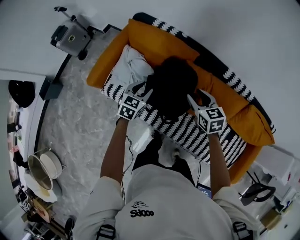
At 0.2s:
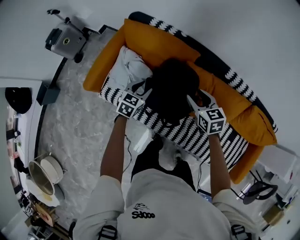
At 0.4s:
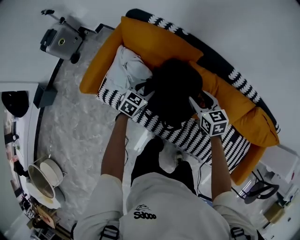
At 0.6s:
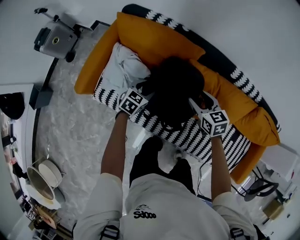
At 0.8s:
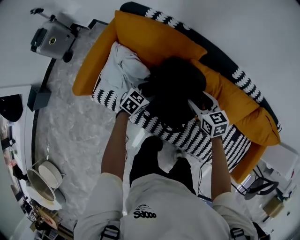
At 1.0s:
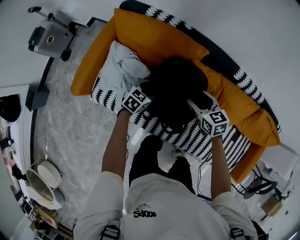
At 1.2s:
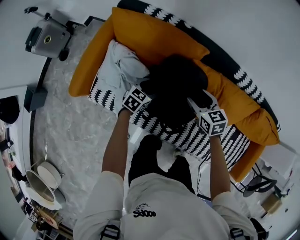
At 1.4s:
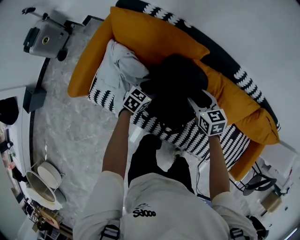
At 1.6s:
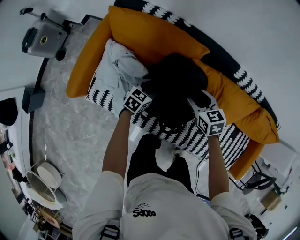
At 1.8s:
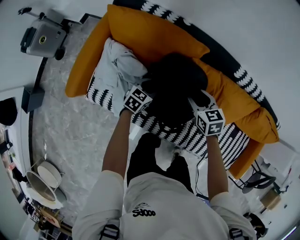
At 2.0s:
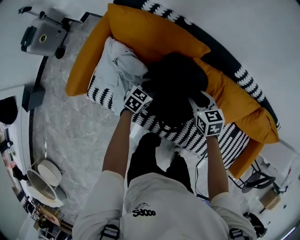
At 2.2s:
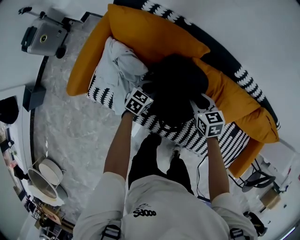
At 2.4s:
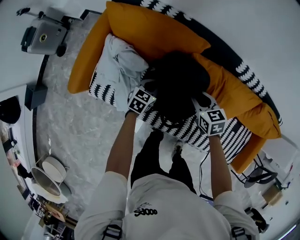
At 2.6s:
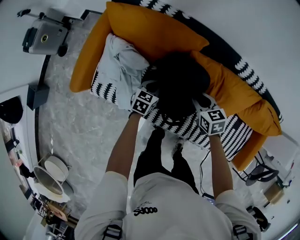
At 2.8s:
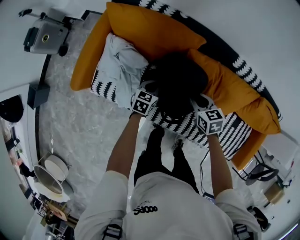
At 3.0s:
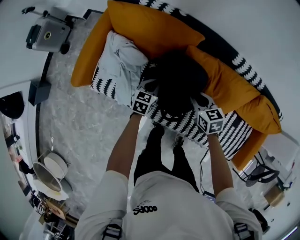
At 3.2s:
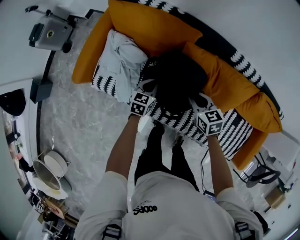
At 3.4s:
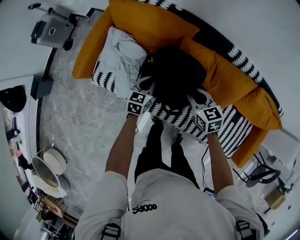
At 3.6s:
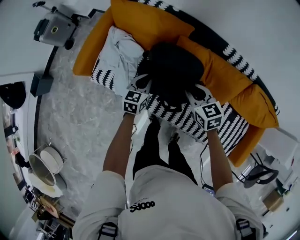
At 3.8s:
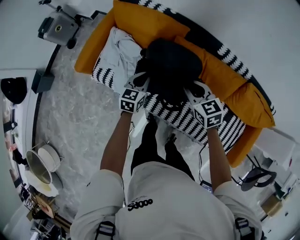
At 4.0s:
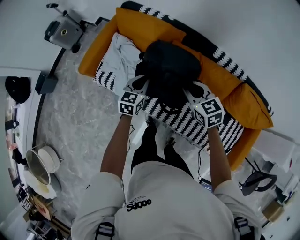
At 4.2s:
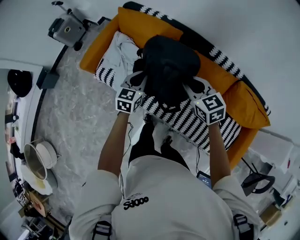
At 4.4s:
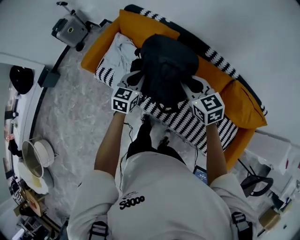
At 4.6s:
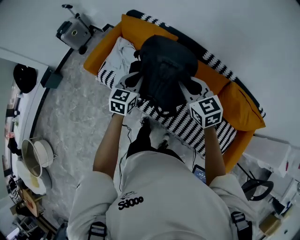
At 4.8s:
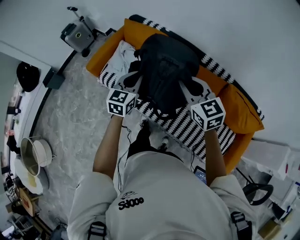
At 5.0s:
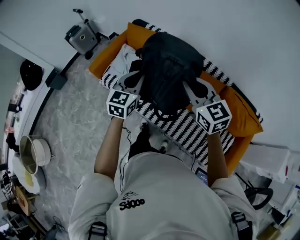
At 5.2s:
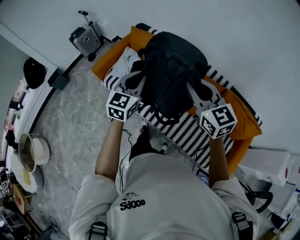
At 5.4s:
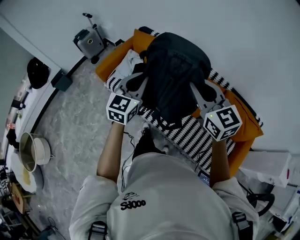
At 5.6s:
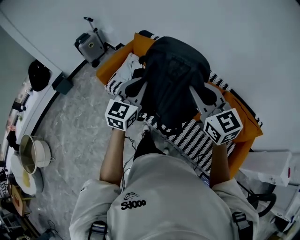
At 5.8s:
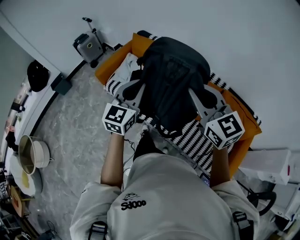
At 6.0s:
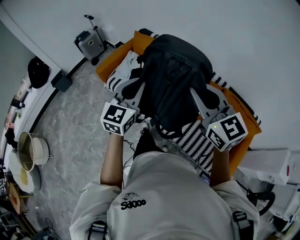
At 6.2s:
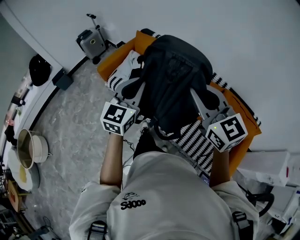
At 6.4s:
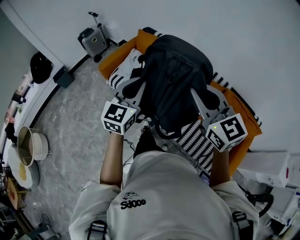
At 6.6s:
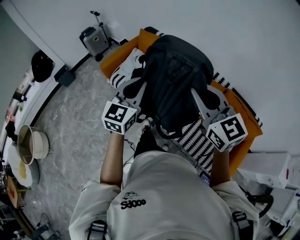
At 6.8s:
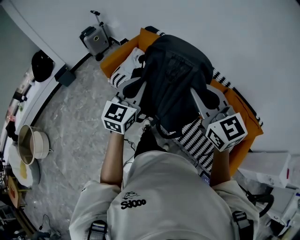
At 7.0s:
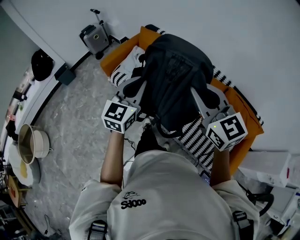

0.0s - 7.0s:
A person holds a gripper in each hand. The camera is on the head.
0.0s - 1.4s: Both grippers move downward and forward, about 20 cm. The left gripper rotates some 20 degrees, and opens.
1.4s - 2.8s: The right gripper ends up approximately 5 cm from where it was, and closes its fingers. The left gripper closes its fingers.
2.8s - 4.2s: Both grippers travel together upward and backward, roughly 30 cm. The left gripper turns by roughly 30 degrees. Meanwhile the right gripper swivels some 30 degrees.
4.2s - 5.6s: The grippers both shift upward and backward by roughly 35 cm. The right gripper rotates some 20 degrees. The left gripper changes its angle by about 20 degrees.
5.6s - 7.0s: Both grippers travel together backward, roughly 5 cm.

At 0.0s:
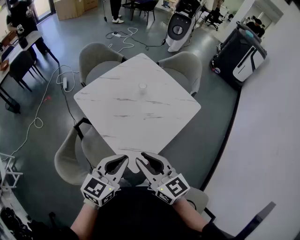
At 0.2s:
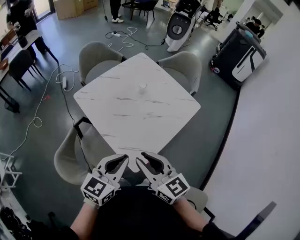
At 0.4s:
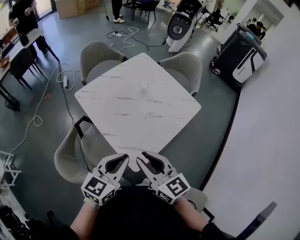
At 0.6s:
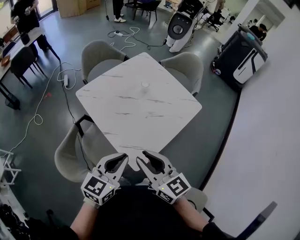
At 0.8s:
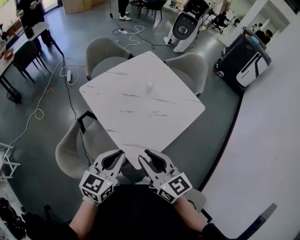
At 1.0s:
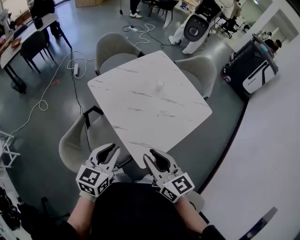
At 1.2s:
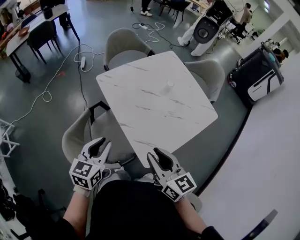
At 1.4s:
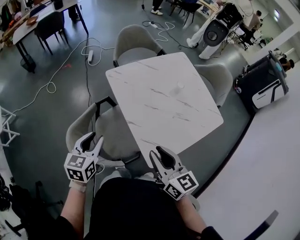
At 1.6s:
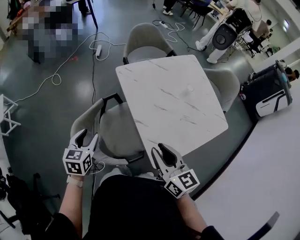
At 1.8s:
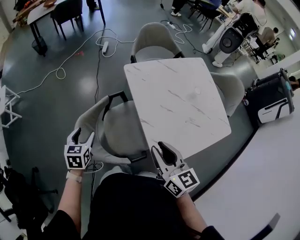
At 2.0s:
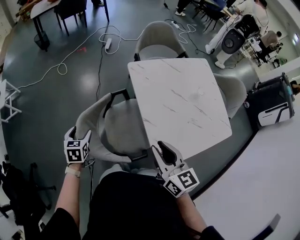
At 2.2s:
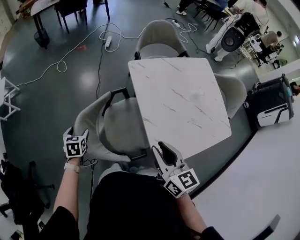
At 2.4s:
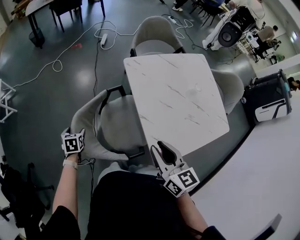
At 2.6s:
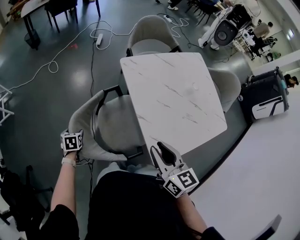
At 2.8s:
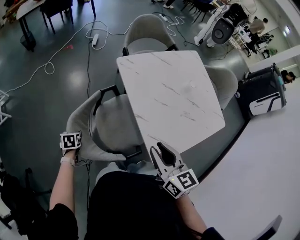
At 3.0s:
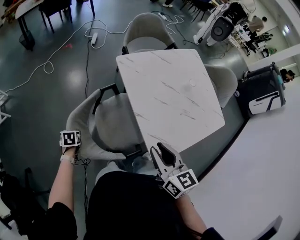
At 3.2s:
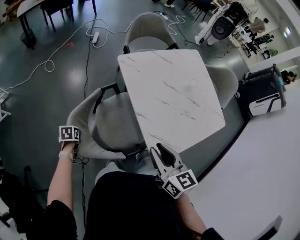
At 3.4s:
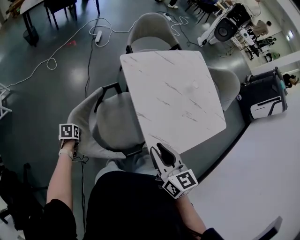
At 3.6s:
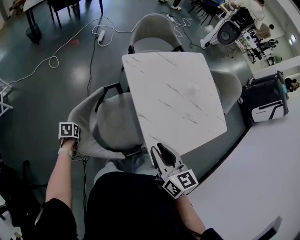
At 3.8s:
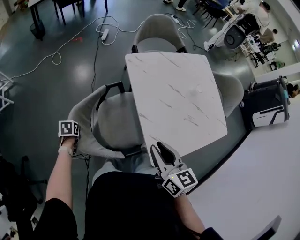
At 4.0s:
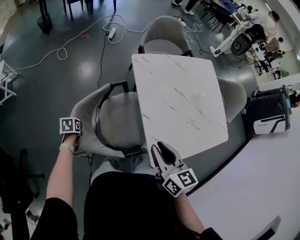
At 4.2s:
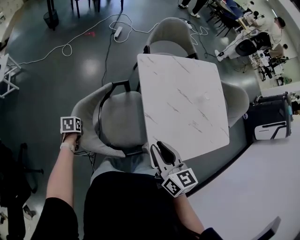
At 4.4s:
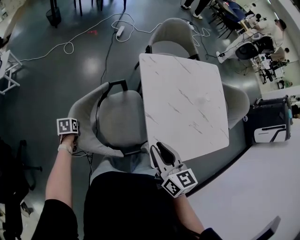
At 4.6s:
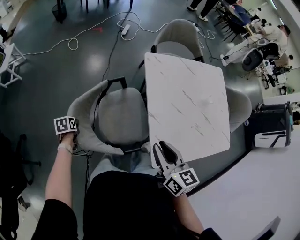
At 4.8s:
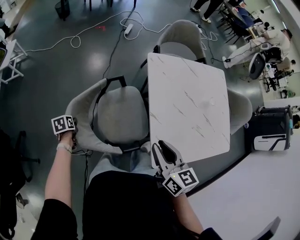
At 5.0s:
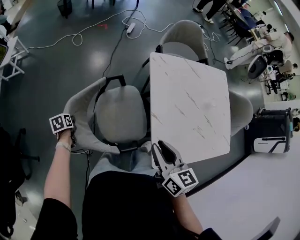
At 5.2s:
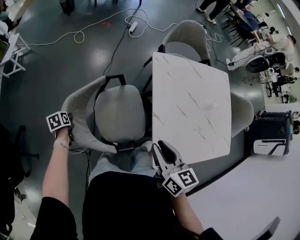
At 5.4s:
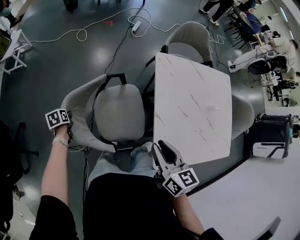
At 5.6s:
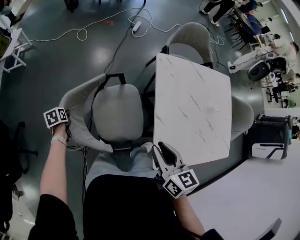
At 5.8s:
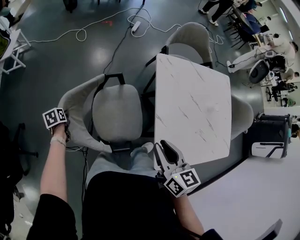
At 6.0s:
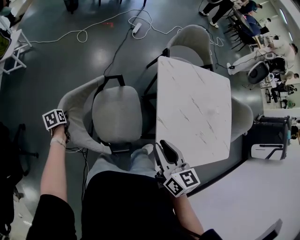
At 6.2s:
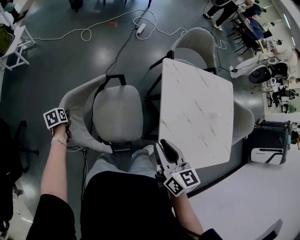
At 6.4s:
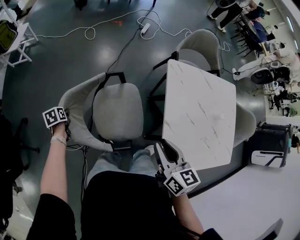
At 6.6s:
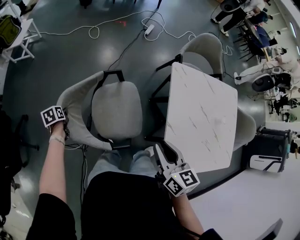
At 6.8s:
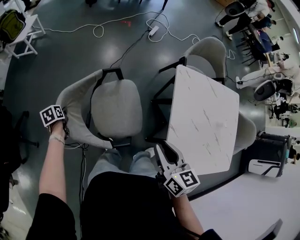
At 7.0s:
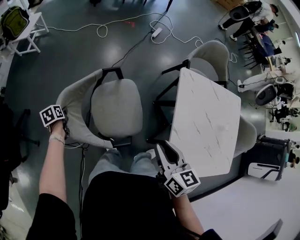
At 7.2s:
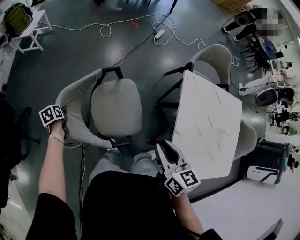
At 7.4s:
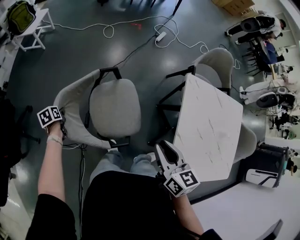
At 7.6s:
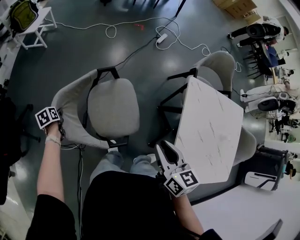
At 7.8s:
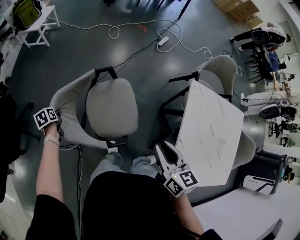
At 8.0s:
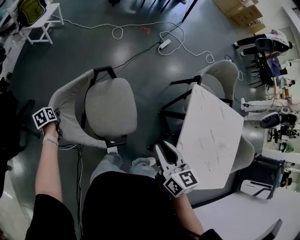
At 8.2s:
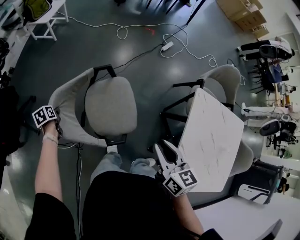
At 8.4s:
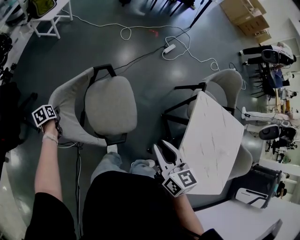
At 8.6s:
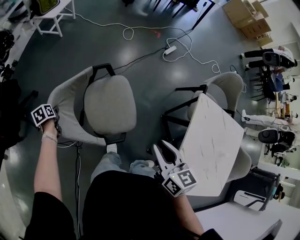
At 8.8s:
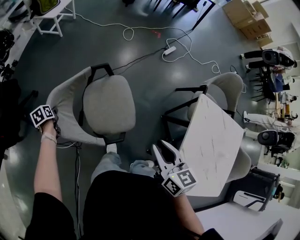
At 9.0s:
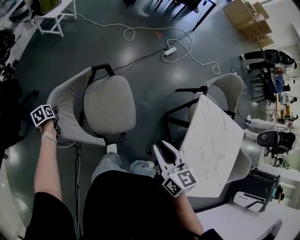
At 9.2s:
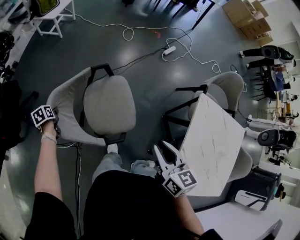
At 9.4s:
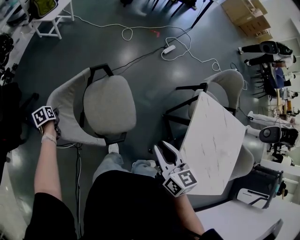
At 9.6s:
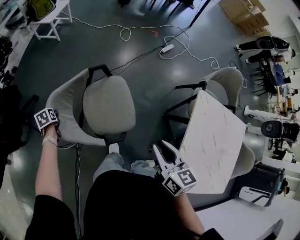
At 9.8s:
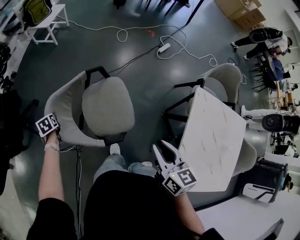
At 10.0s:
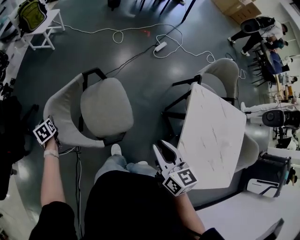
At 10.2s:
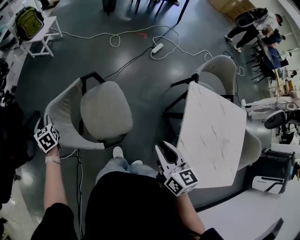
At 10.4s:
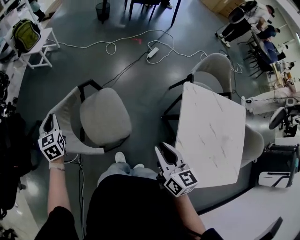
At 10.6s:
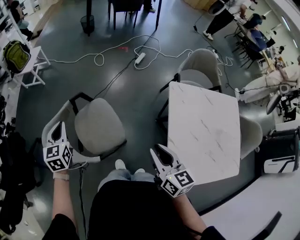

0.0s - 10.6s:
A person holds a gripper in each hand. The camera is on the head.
0.0s - 1.6s: The left gripper shifts by approximately 35 cm, changes its angle by about 50 degrees, and opens its fingers; the right gripper shifts by about 15 cm.
1.6s - 3.0s: The left gripper shifts some 25 cm downward and to the left, and angles its fingers downward, by approximately 30 degrees.
3.0s - 4.6s: The left gripper changes place by roughly 5 cm, and changes its angle by approximately 30 degrees.
4.6s - 6.0s: The right gripper ends up some 5 cm from where it was. Meanwhile the left gripper goes some 10 cm to the left.
6.0s - 7.6s: The right gripper goes about 15 cm to the left and forward, while the left gripper moves to the left, some 20 cm.
7.6s - 9.0s: The right gripper shifts by roughly 5 cm, while the left gripper goes roughly 10 cm to the left.
9.0s - 10.6s: The left gripper heads upward, covering some 25 cm, tips its fingers upward by approximately 40 degrees, and closes its fingers. Meanwhile the right gripper changes place by approximately 15 cm.

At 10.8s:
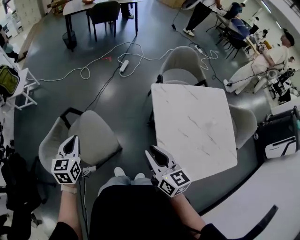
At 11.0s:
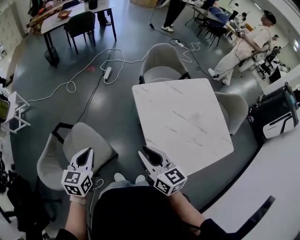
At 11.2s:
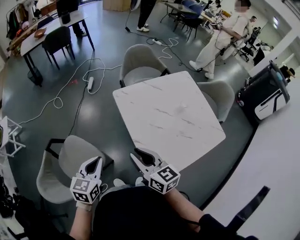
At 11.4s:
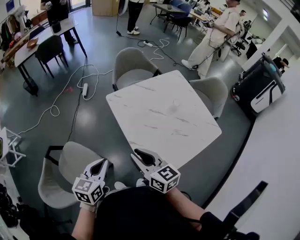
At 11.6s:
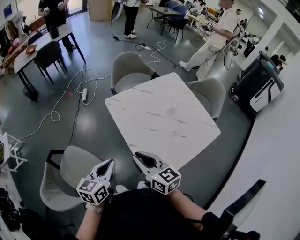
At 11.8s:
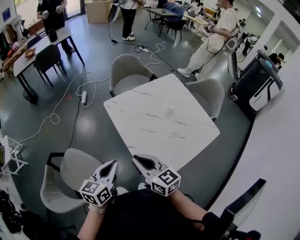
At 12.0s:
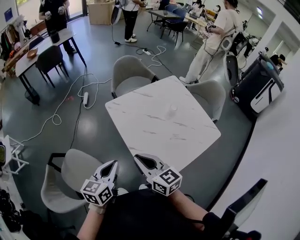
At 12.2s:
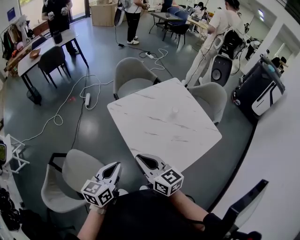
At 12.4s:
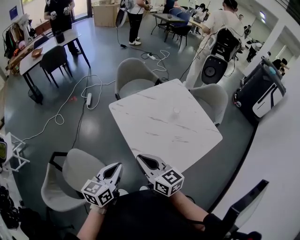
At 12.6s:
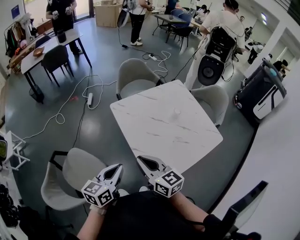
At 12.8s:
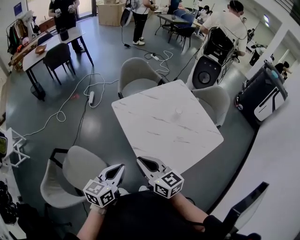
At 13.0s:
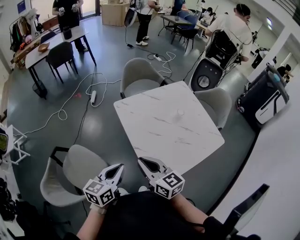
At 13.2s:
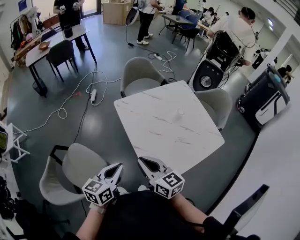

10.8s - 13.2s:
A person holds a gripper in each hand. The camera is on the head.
10.8s - 12.0s: The right gripper shifts by approximately 15 cm. Meanwhile the left gripper moves some 35 cm, and rotates about 40 degrees.
12.0s - 13.2s: There are only small adjustments of the grippers.

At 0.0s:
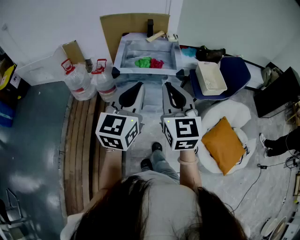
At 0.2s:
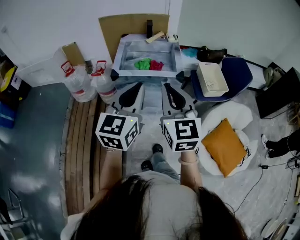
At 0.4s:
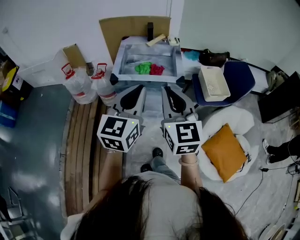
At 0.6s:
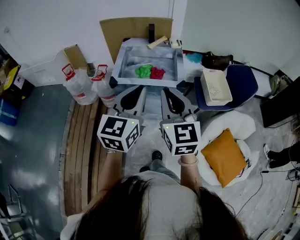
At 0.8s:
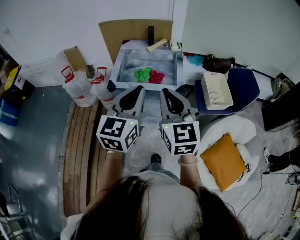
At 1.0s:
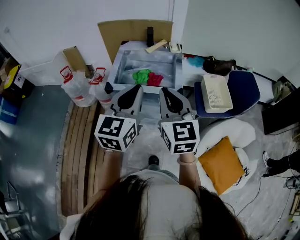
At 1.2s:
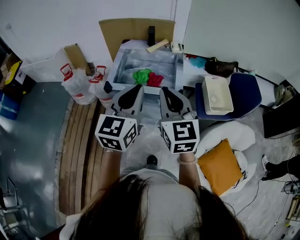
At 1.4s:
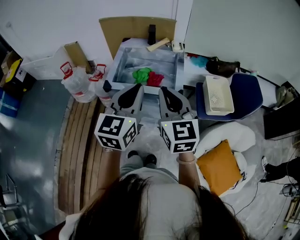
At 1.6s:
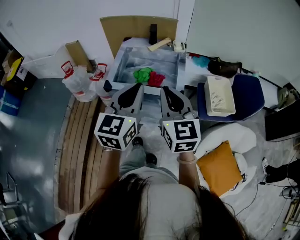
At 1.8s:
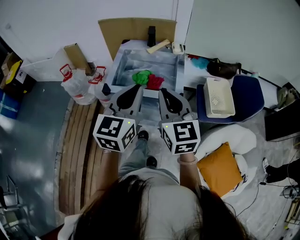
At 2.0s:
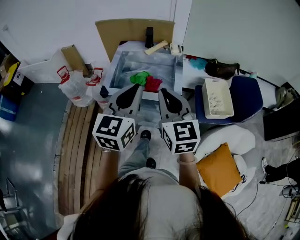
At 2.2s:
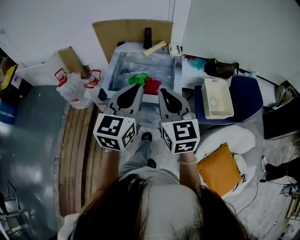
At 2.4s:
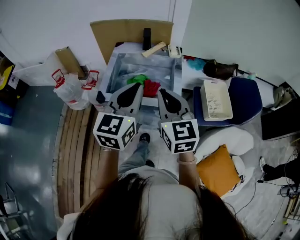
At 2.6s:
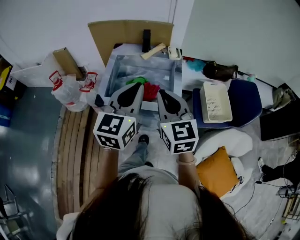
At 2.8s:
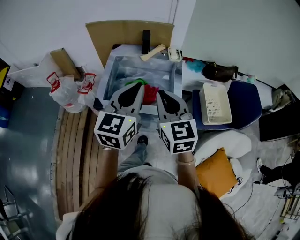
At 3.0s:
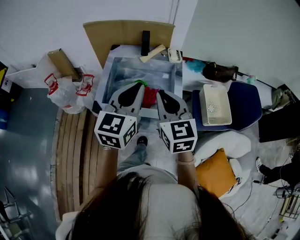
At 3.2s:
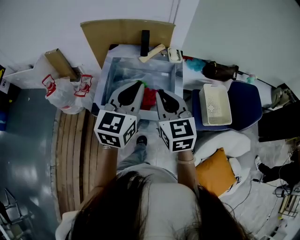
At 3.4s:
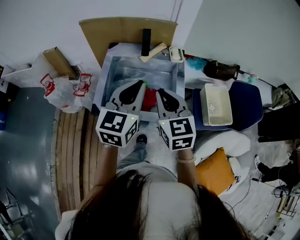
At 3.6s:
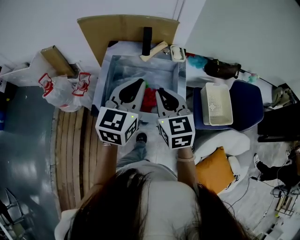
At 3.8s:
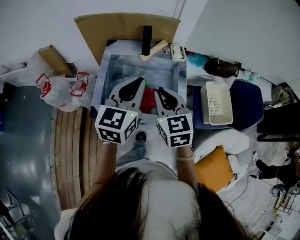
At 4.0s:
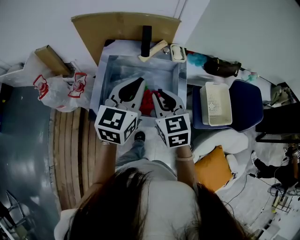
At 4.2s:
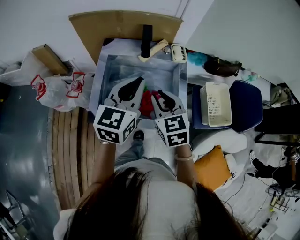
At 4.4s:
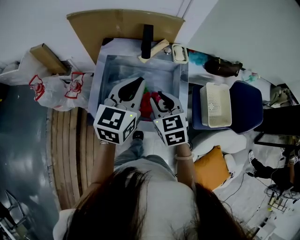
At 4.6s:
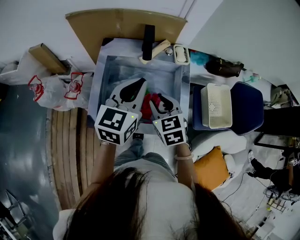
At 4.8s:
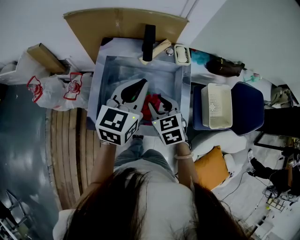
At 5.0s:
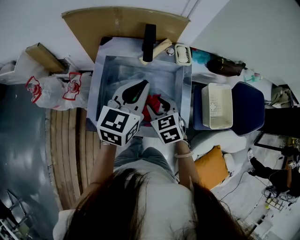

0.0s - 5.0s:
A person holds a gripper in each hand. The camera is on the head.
0.0s - 1.6s: Both grippers move forward and to the right, roughly 20 cm.
1.6s - 3.4s: The two grippers go approximately 20 cm forward.
3.4s - 5.0s: The left gripper goes some 15 cm forward and downward. Meanwhile the right gripper heads downward and forward, covering roughly 20 cm, rotates approximately 30 degrees, and opens up.
